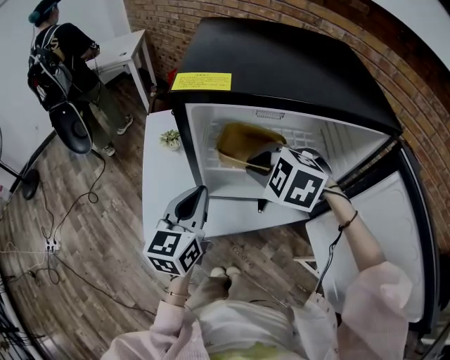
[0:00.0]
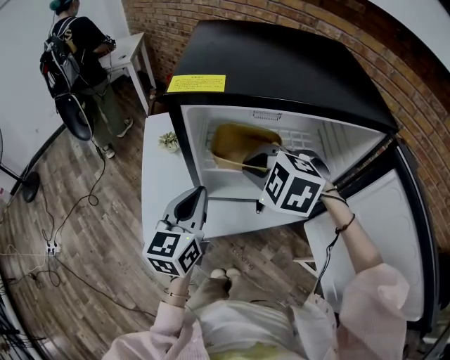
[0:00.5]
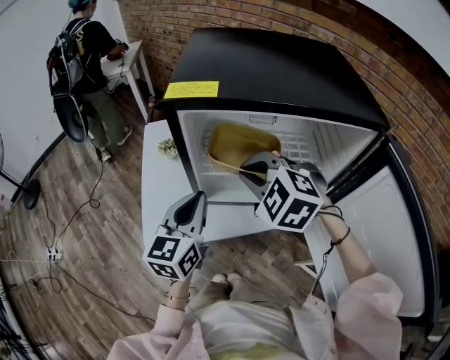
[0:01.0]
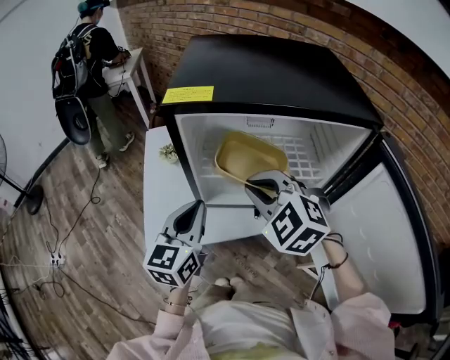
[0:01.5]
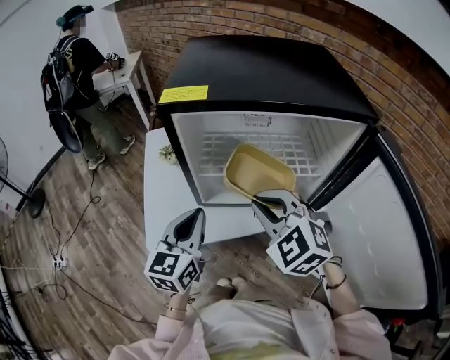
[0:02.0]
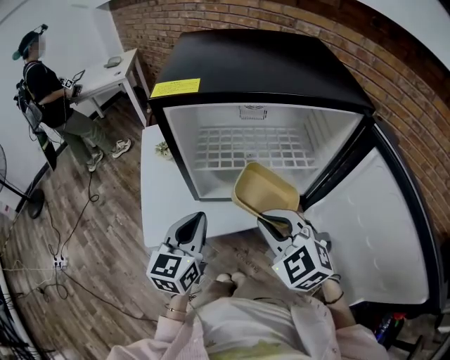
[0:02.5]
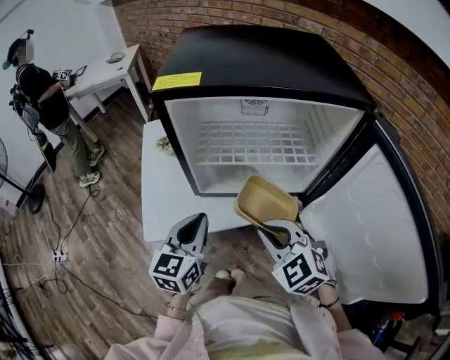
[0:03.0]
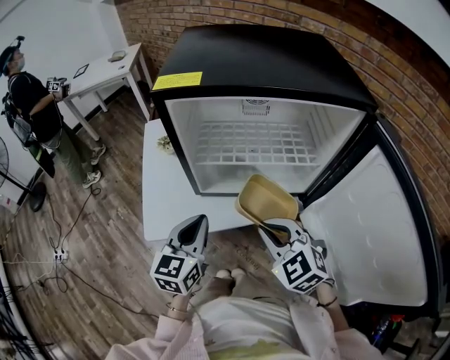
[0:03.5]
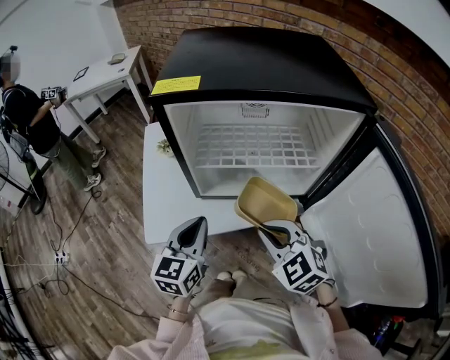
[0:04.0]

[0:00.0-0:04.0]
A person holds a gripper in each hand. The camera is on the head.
0.0 to 2.0 s: The right gripper shifts approximately 10 cm backward, and changes its angle by some 30 degrees.
2.0 to 4.0 s: The right gripper travels downward and backward by roughly 10 cm. The left gripper changes place by some 5 cm.

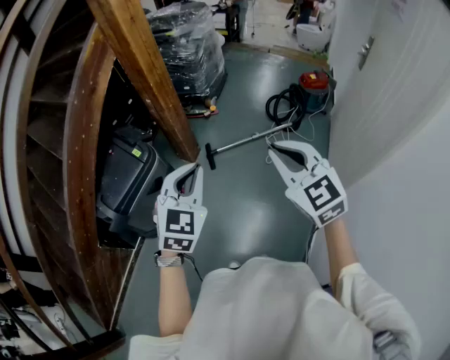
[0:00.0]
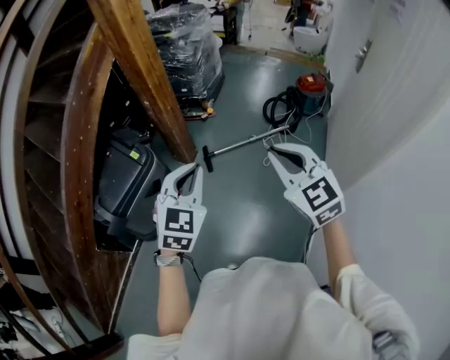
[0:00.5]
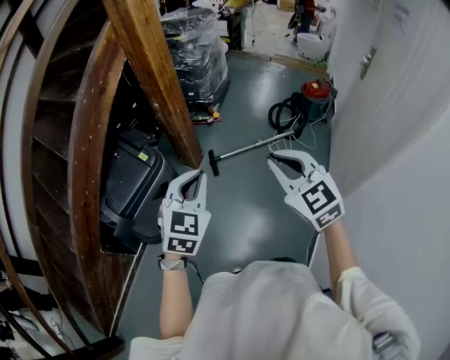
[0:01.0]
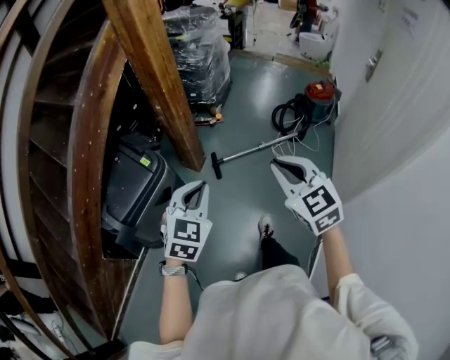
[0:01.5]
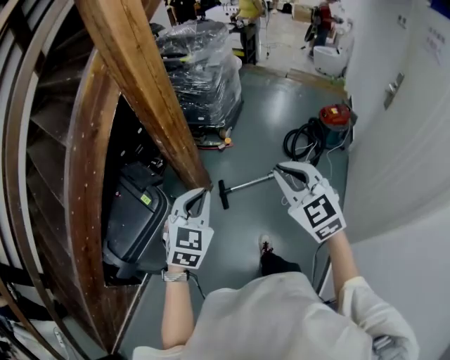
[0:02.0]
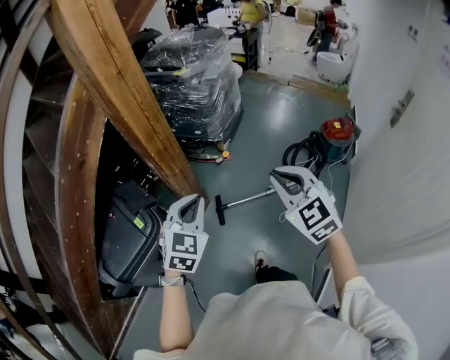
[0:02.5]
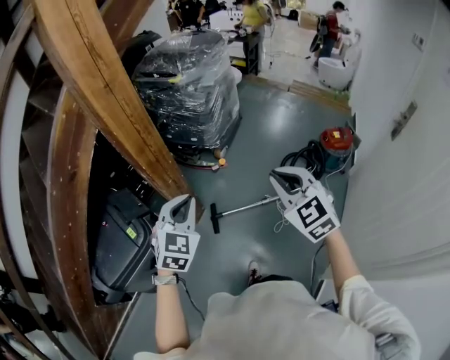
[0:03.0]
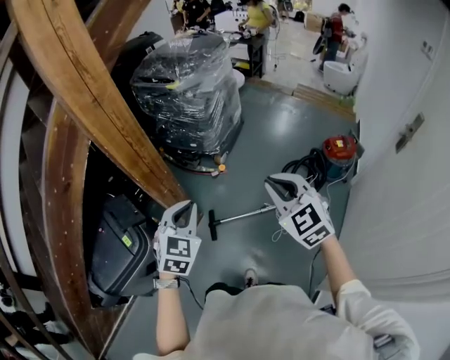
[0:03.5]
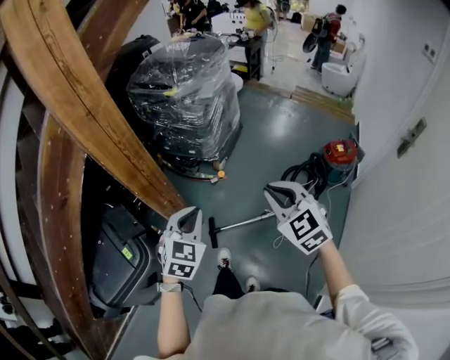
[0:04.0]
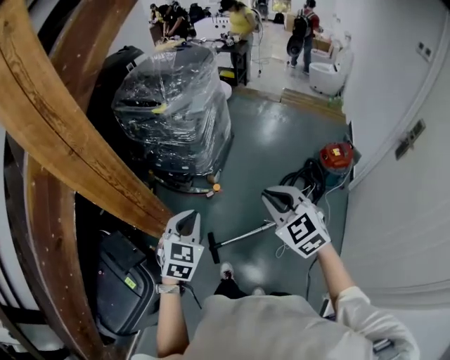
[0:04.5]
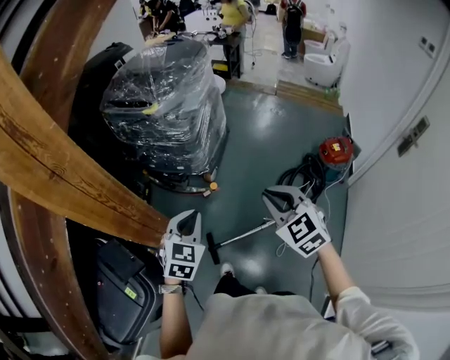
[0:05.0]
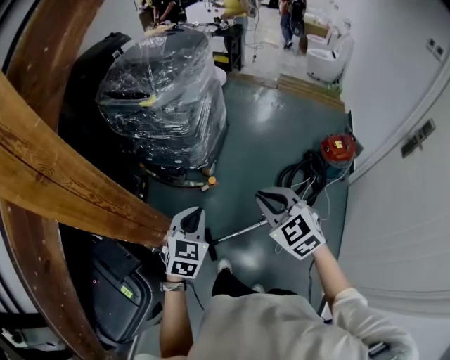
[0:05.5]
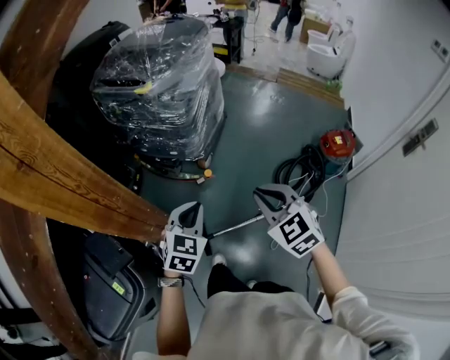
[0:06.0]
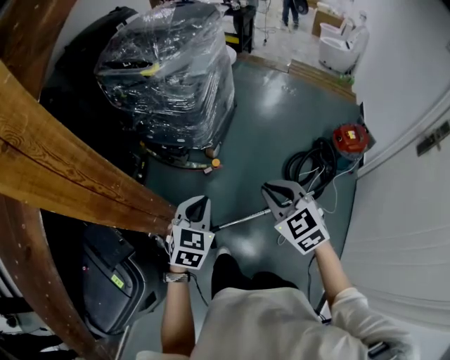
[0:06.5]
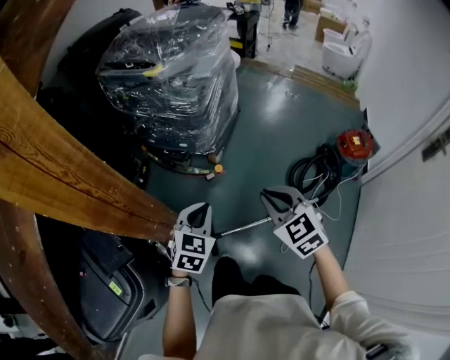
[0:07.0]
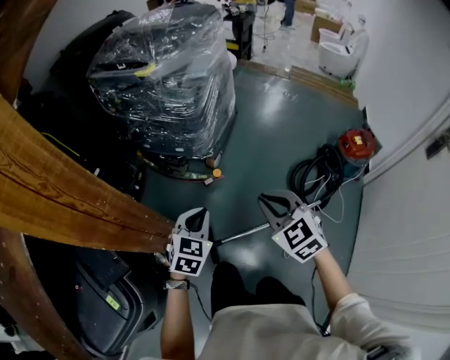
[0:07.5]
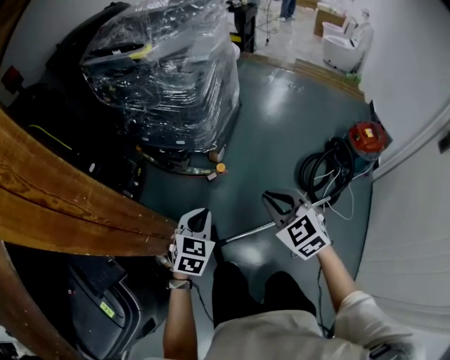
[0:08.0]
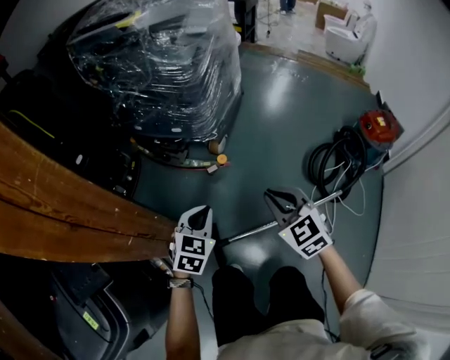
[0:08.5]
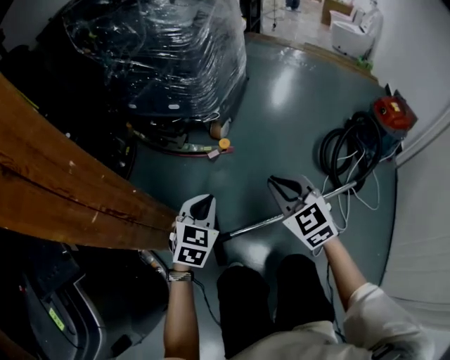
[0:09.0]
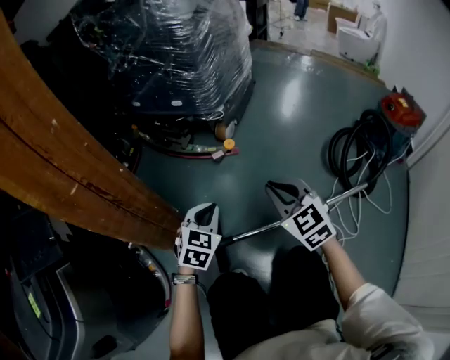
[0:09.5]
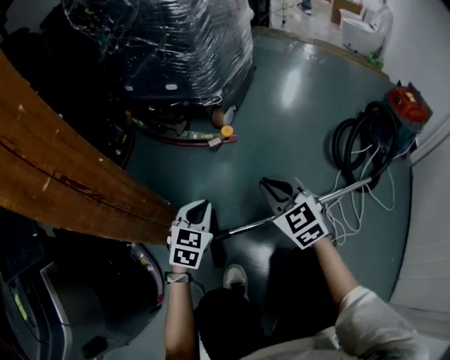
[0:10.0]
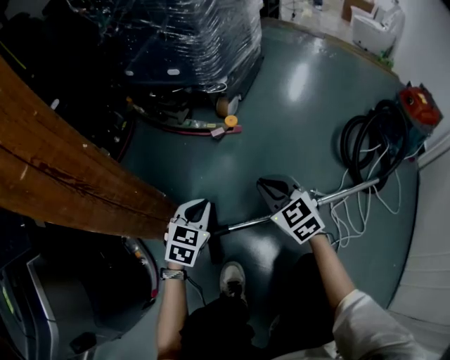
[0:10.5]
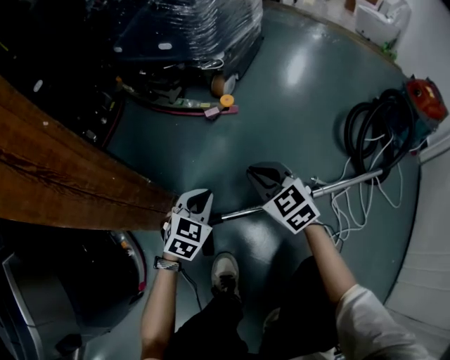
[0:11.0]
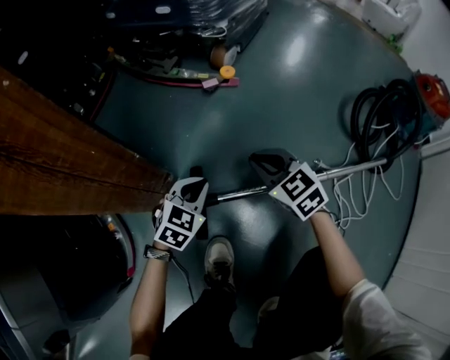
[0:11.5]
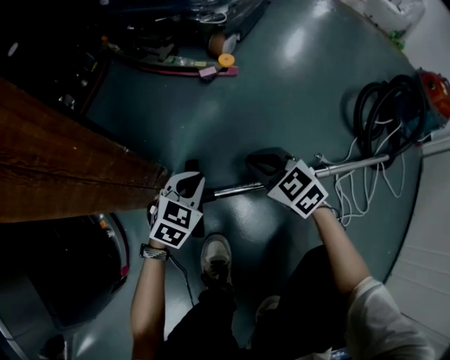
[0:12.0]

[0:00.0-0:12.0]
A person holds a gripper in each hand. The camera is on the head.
0.0 to 2.0 s: Both grippers move forward, approximately 20 cm.
2.0 to 4.0 s: The grippers both shift forward and to the right by roughly 30 cm.
4.0 to 6.0 s: Both grippers move forward and downward, approximately 20 cm.
6.0 to 8.0 s: The two grippers go about 25 cm downward.
8.0 to 10.0 s: The grippers both shift downward by approximately 35 cm.
10.0 to 12.0 s: Both grippers move downward, about 20 cm. The right gripper changes its angle by some 20 degrees.

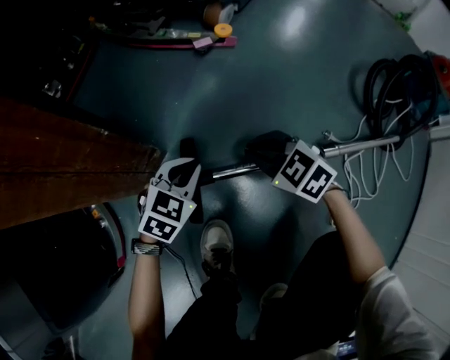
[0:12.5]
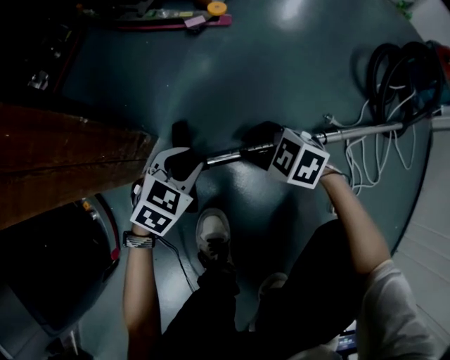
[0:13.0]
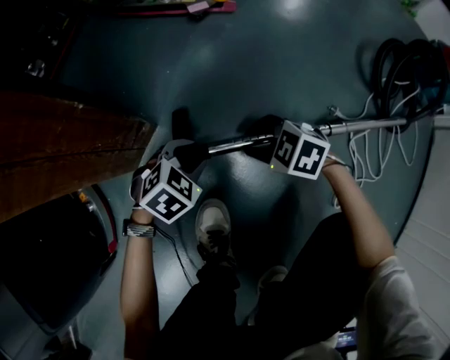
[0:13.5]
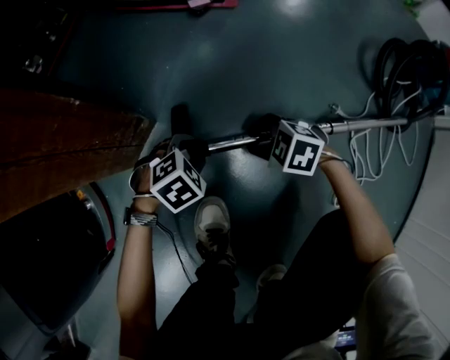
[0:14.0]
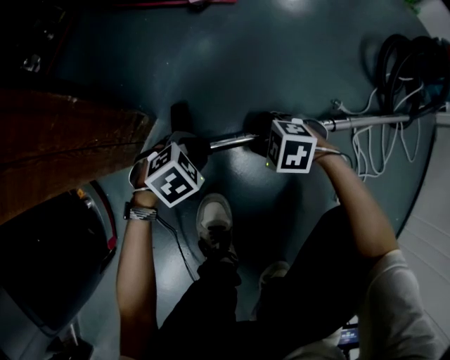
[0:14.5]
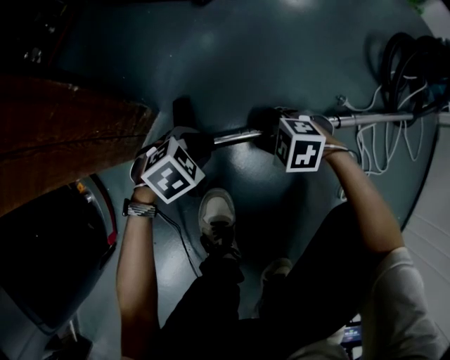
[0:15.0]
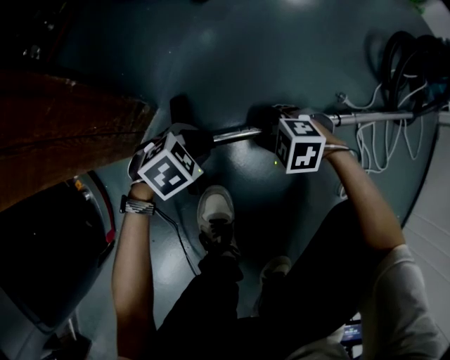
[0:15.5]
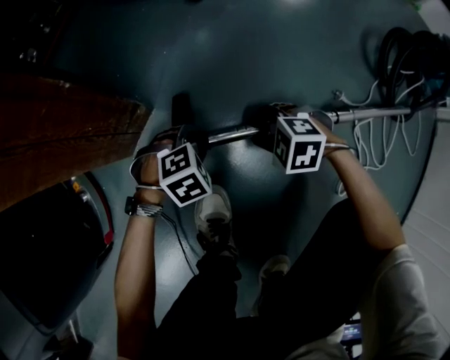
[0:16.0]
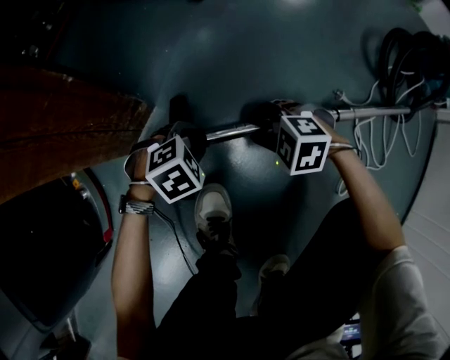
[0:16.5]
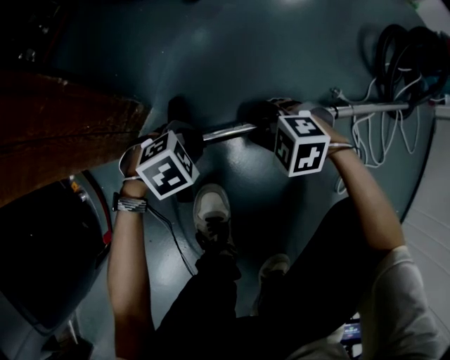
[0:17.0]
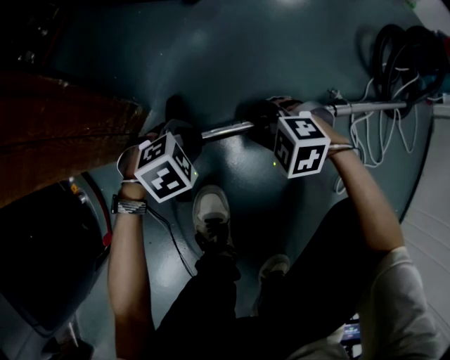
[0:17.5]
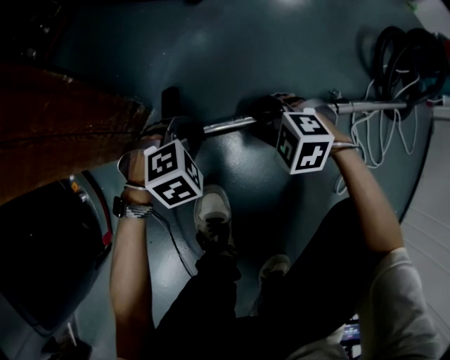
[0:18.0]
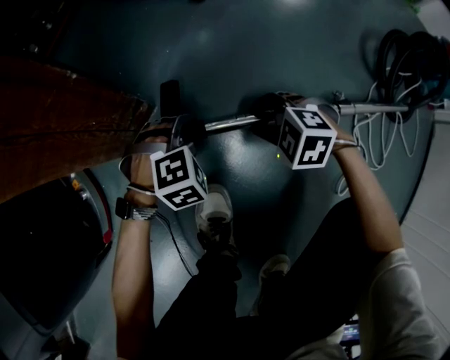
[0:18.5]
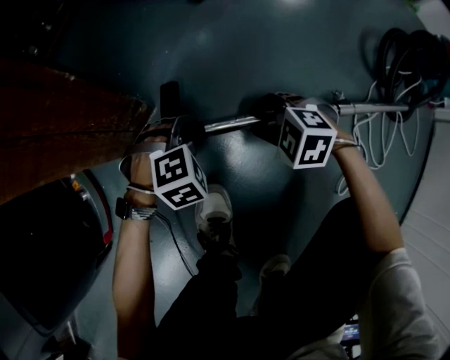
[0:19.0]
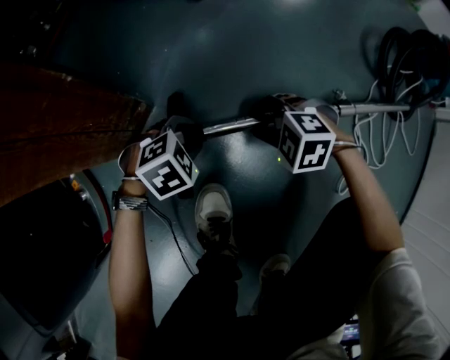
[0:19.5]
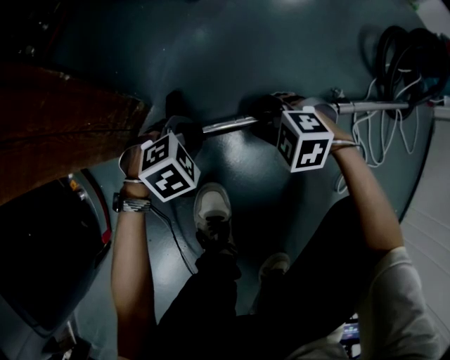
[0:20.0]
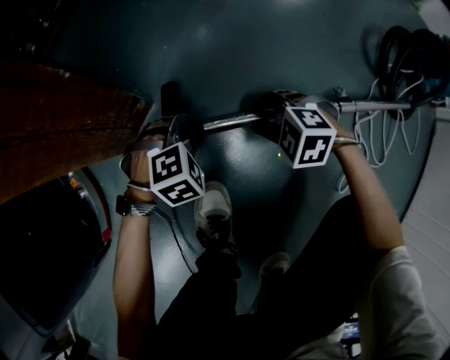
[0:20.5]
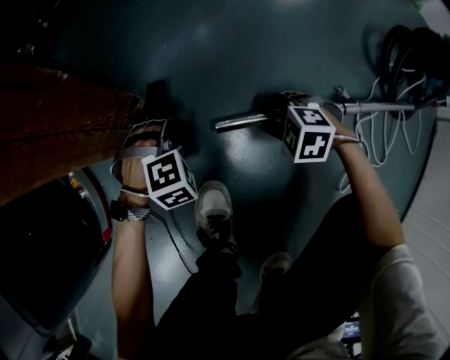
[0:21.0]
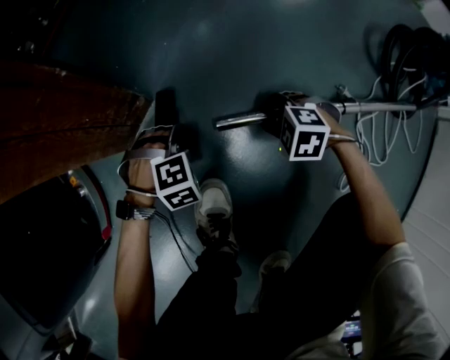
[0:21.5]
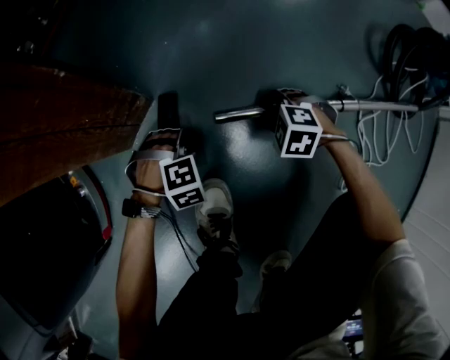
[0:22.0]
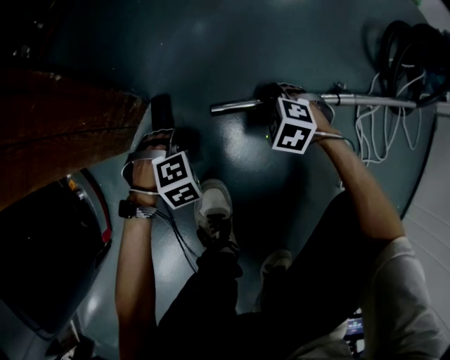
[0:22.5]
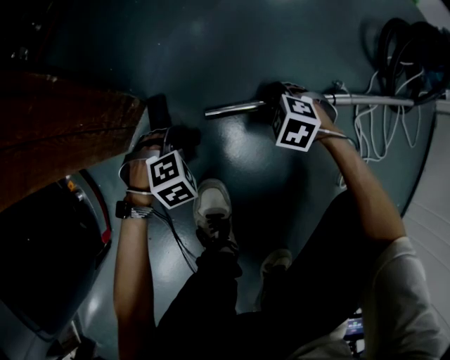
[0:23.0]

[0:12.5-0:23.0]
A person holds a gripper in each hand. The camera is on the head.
12.5 to 14.5 s: Both grippers travel together downward, some 10 cm. The right gripper turns by about 30 degrees, and opens up. The left gripper swivels roughly 30 degrees, and opens its fingers.
14.5 to 16.5 s: The grippers move only a little.
19.0 to 21.0 s: The grippers stay close to where they were, moving slightly.
21.0 to 23.0 s: The right gripper changes place by roughly 5 cm. Meanwhile the left gripper is displaced downward by roughly 5 cm.

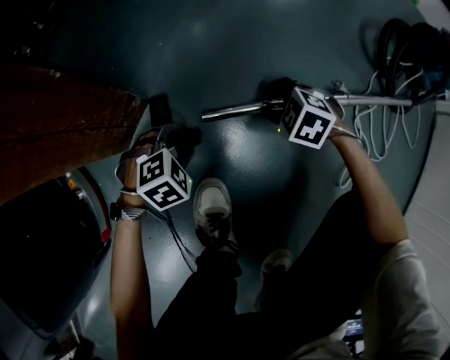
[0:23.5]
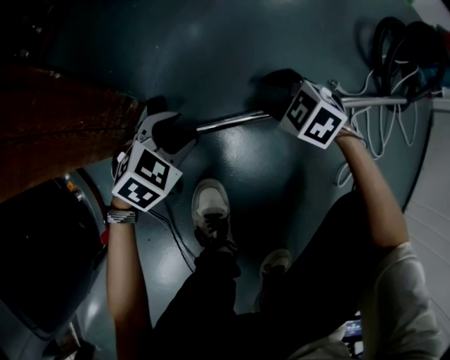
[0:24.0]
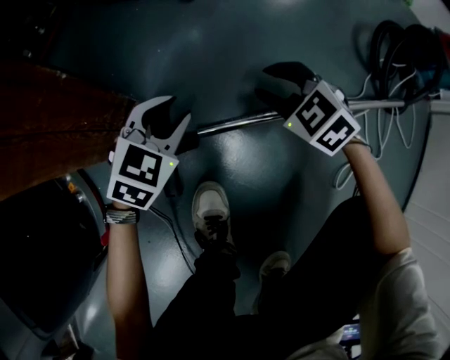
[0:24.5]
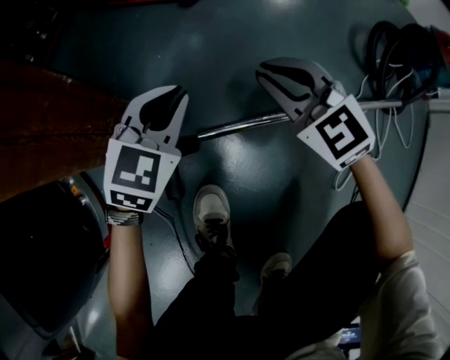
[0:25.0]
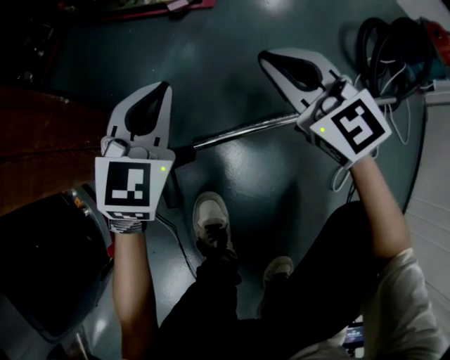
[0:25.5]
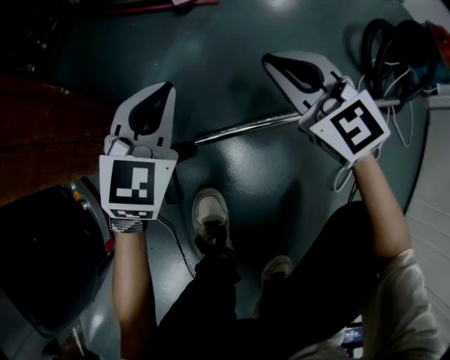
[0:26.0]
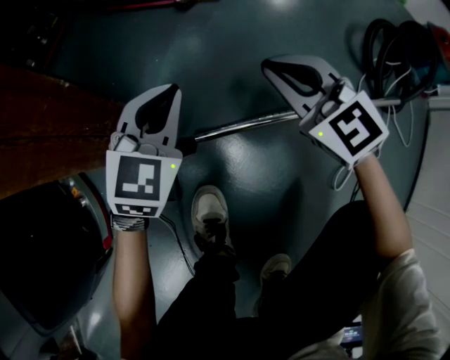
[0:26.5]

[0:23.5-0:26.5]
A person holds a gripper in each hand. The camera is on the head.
23.5 to 25.0 s: The left gripper heads upward and forward, covering approximately 20 cm, tilts its fingers some 40 degrees upward, and closes. Meanwhile the right gripper goes about 20 cm upward, tilts its fingers some 40 degrees upward, and closes.
